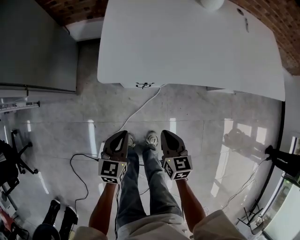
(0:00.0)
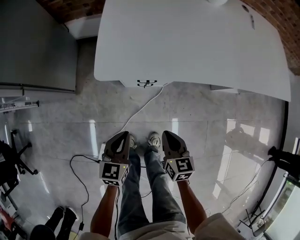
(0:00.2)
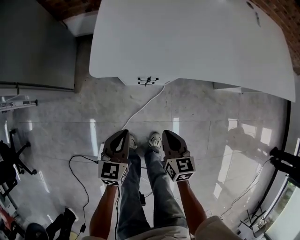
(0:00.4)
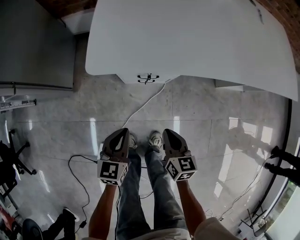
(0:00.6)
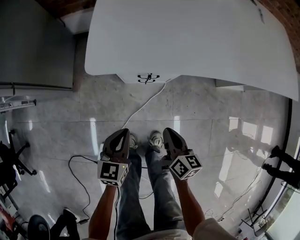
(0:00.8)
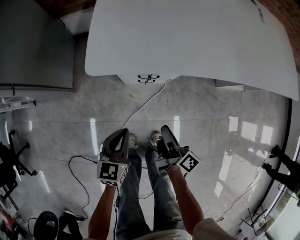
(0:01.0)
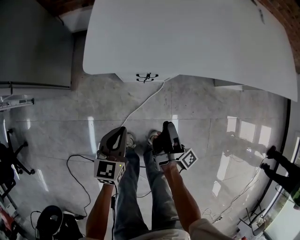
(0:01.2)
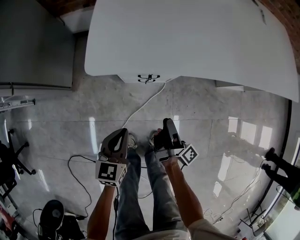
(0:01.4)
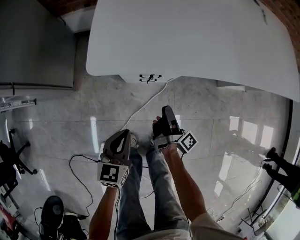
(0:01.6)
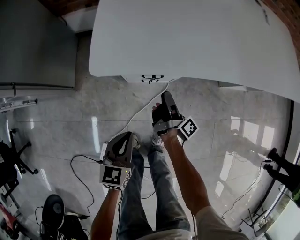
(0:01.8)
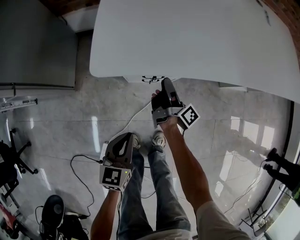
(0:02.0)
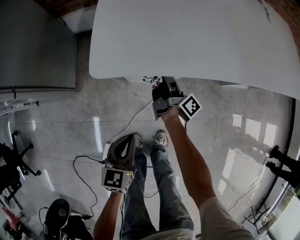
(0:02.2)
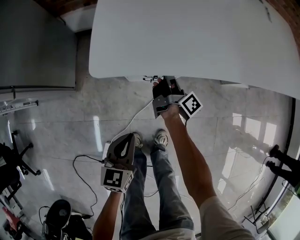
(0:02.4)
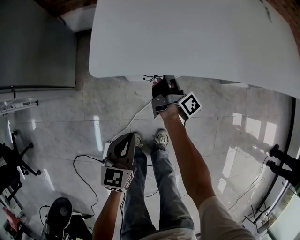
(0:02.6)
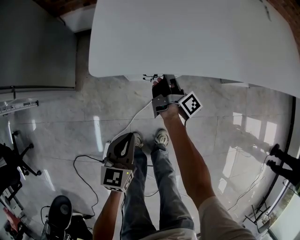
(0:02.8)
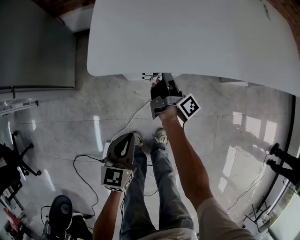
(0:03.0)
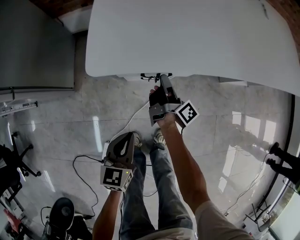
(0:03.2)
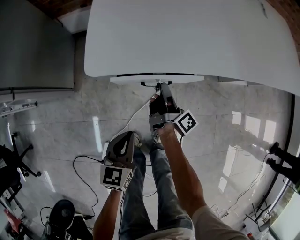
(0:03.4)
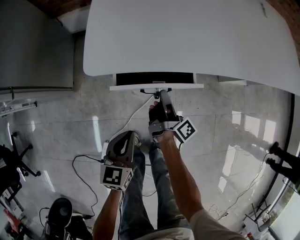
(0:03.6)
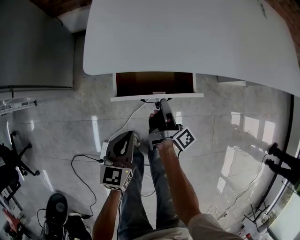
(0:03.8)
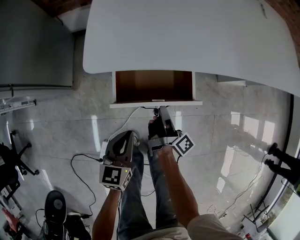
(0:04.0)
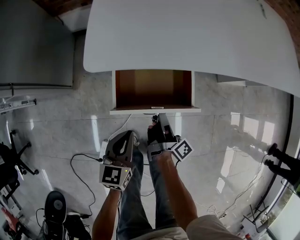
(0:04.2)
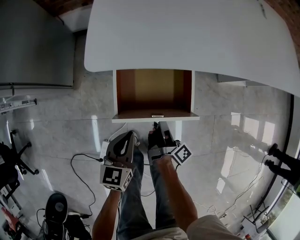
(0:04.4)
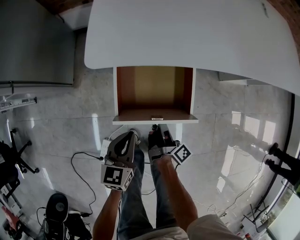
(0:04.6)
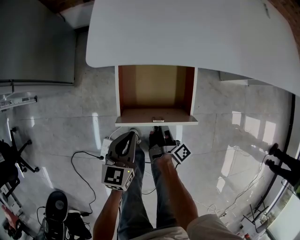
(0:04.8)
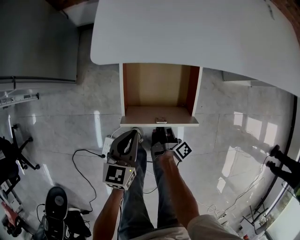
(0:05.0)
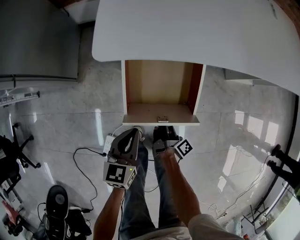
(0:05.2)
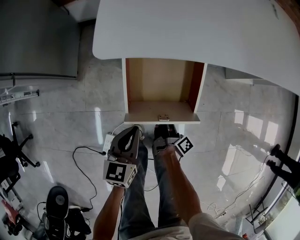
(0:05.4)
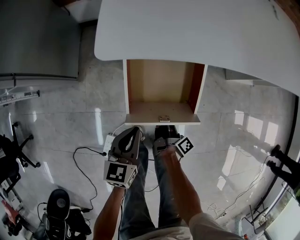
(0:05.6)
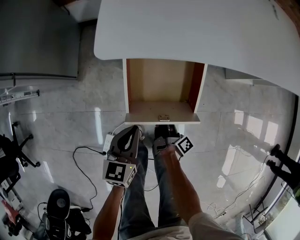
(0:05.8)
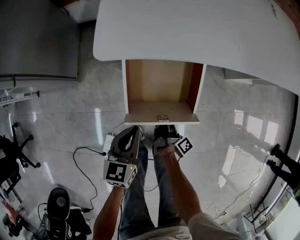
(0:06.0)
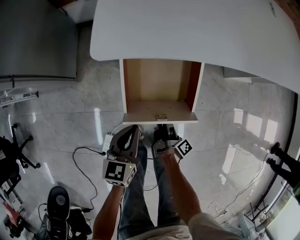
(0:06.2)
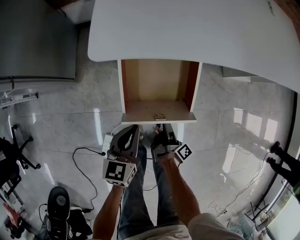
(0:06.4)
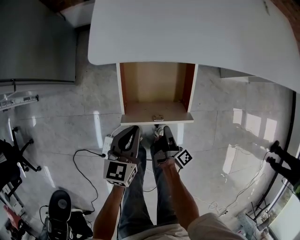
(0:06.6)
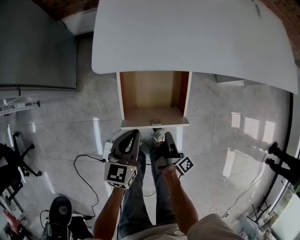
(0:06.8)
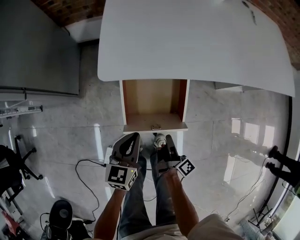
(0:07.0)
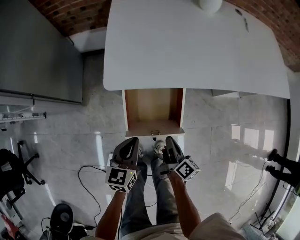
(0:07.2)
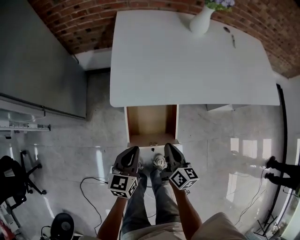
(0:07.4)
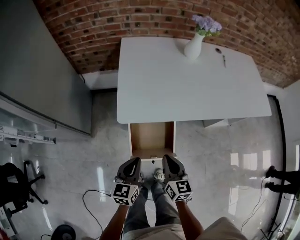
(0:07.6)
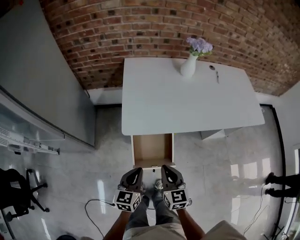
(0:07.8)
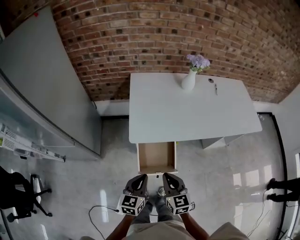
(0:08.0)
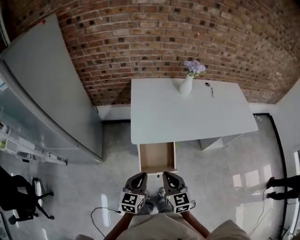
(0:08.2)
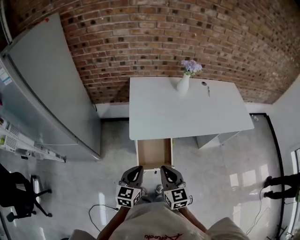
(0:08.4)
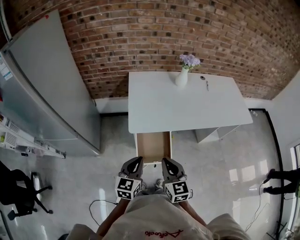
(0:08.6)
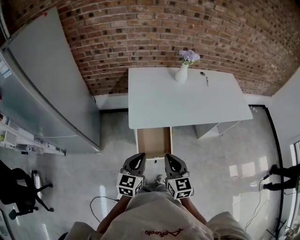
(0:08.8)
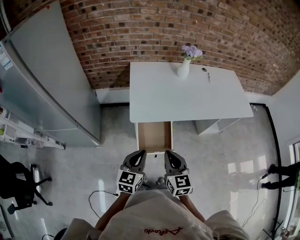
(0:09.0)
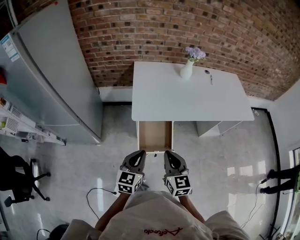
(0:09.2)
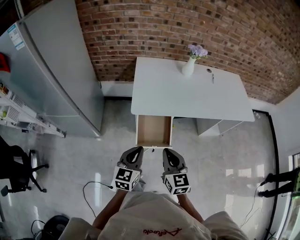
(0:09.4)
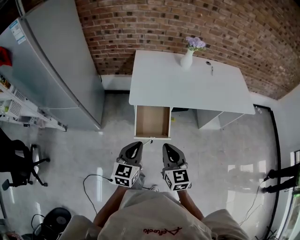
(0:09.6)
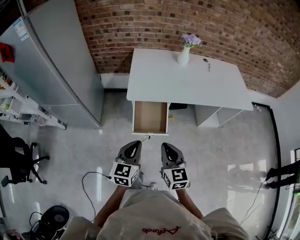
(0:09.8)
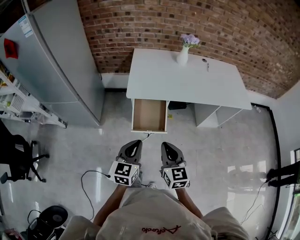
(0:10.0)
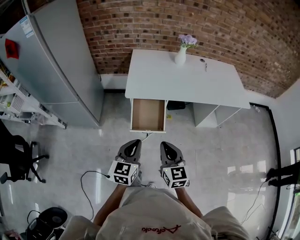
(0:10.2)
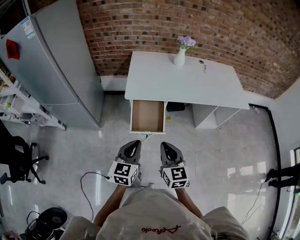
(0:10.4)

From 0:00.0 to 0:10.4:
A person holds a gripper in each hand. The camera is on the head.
From 0:00.0 to 0:01.4: The two grippers go roughly 10 cm downward. The right gripper twists about 80 degrees clockwise, seen from behind, and opens up.
From 0:01.4 to 0:03.0: The right gripper is displaced forward by about 15 cm, and closes its fingers.
From 0:03.0 to 0:04.4: The right gripper moves backward, approximately 20 cm.
From 0:04.4 to 0:06.0: The right gripper heads downward, covering approximately 10 cm.
From 0:06.0 to 0:07.4: The right gripper shifts about 25 cm upward, and twists about 60 degrees counterclockwise, seen from behind. The left gripper shifts some 15 cm upward.
From 0:07.4 to 0:09.0: Both grippers travel together upward, some 25 cm. The right gripper swivels approximately 40 degrees.
From 0:09.0 to 0:10.4: The grippers both shift backward and to the right by approximately 15 cm.

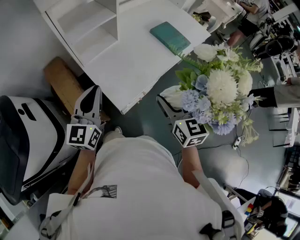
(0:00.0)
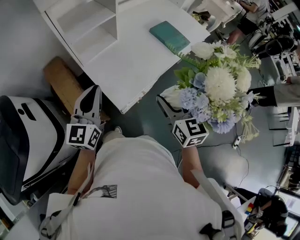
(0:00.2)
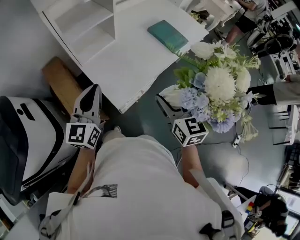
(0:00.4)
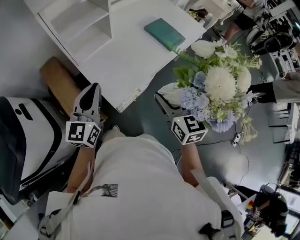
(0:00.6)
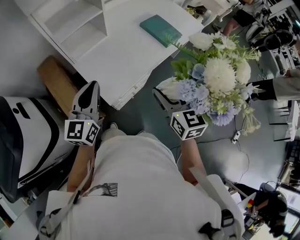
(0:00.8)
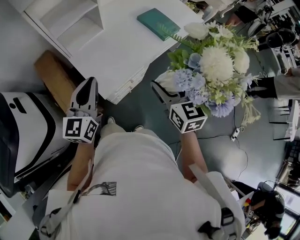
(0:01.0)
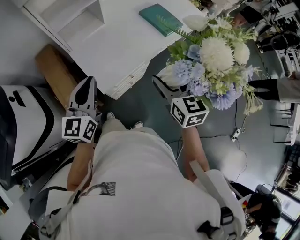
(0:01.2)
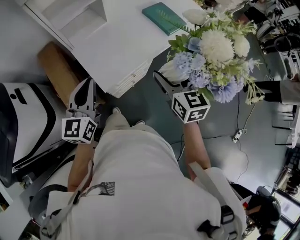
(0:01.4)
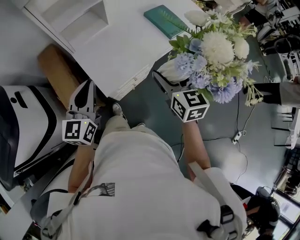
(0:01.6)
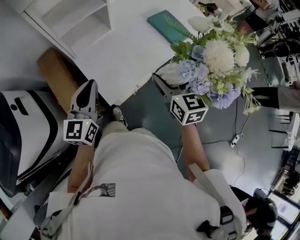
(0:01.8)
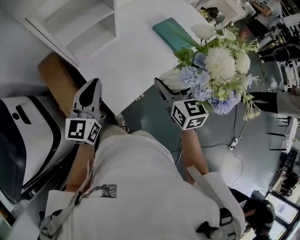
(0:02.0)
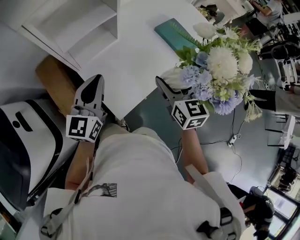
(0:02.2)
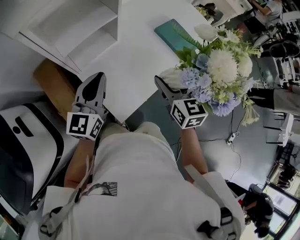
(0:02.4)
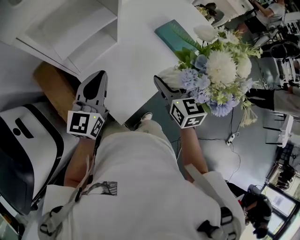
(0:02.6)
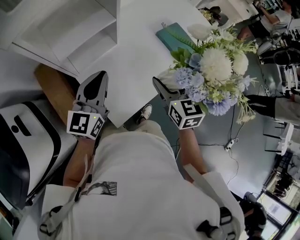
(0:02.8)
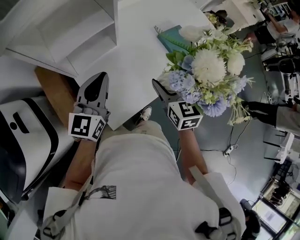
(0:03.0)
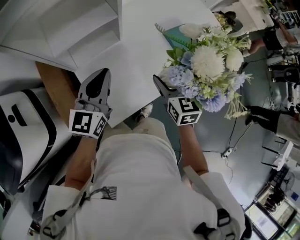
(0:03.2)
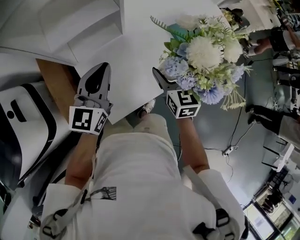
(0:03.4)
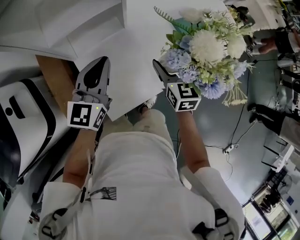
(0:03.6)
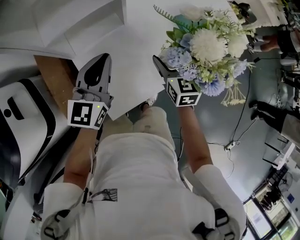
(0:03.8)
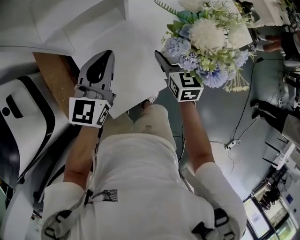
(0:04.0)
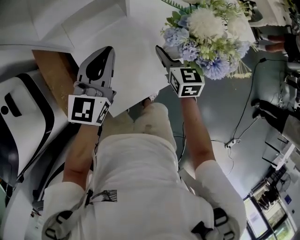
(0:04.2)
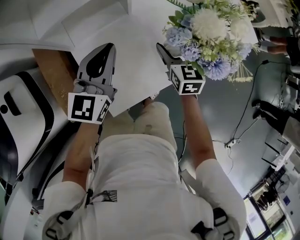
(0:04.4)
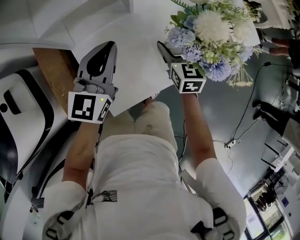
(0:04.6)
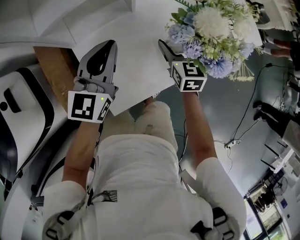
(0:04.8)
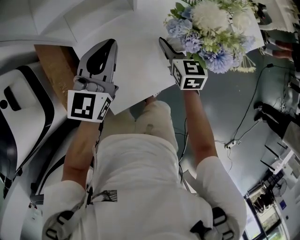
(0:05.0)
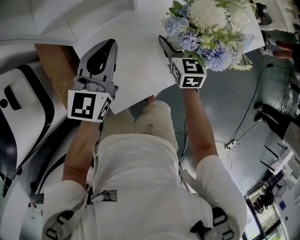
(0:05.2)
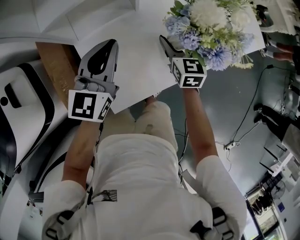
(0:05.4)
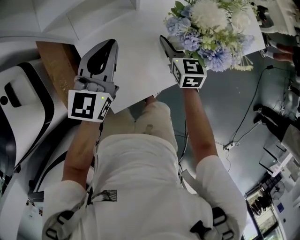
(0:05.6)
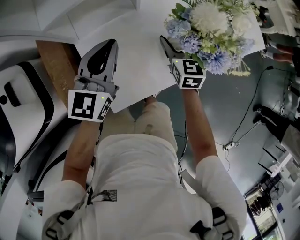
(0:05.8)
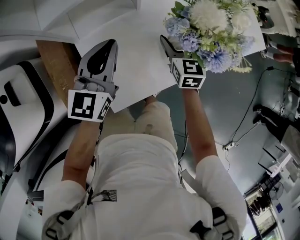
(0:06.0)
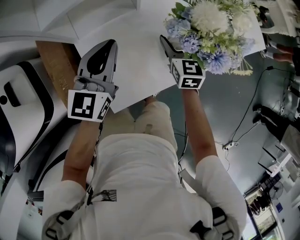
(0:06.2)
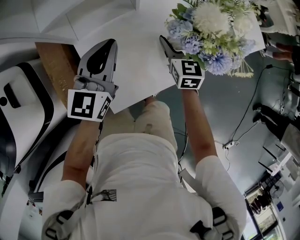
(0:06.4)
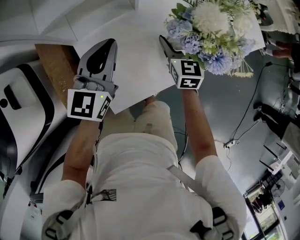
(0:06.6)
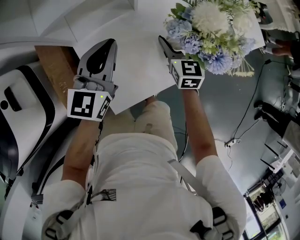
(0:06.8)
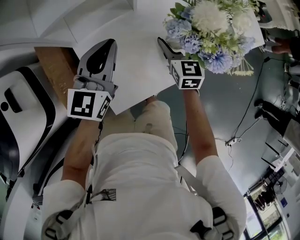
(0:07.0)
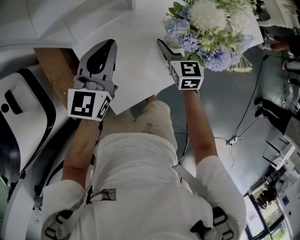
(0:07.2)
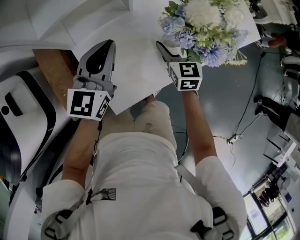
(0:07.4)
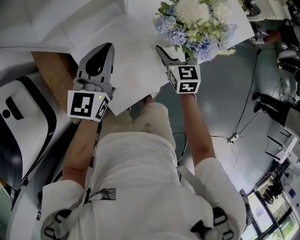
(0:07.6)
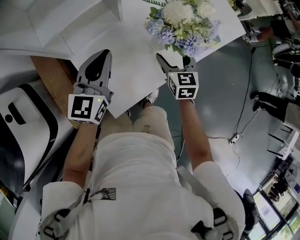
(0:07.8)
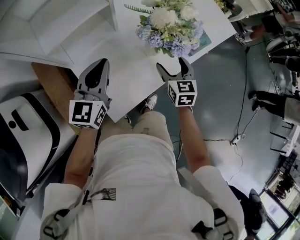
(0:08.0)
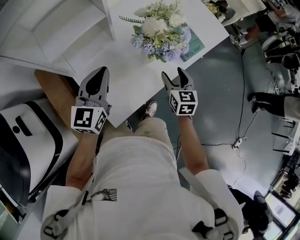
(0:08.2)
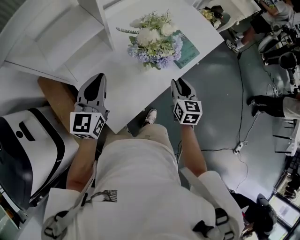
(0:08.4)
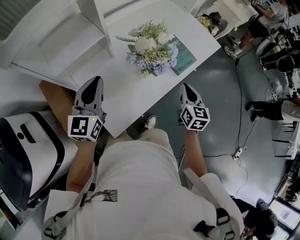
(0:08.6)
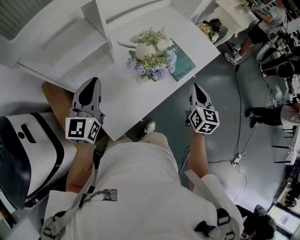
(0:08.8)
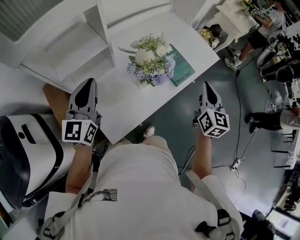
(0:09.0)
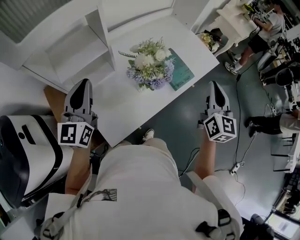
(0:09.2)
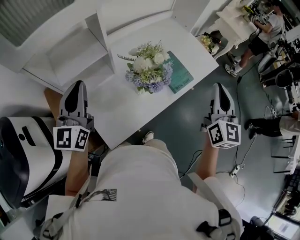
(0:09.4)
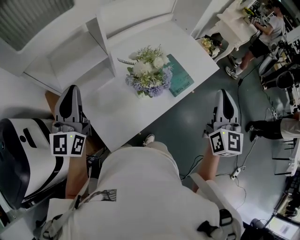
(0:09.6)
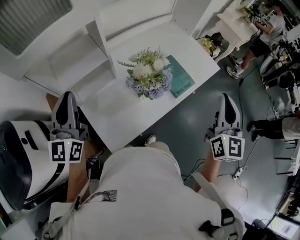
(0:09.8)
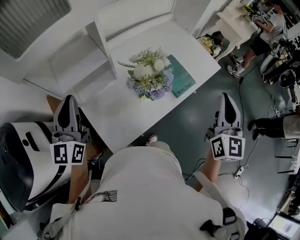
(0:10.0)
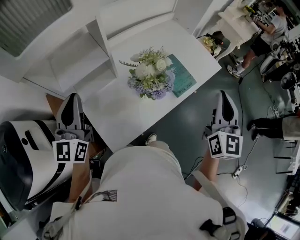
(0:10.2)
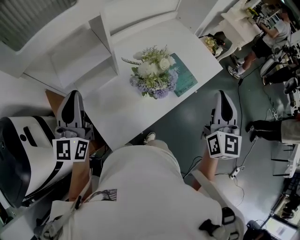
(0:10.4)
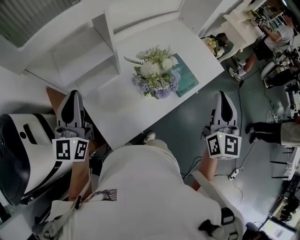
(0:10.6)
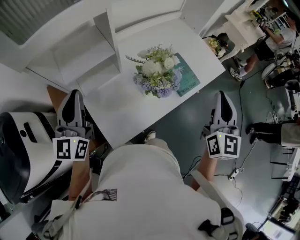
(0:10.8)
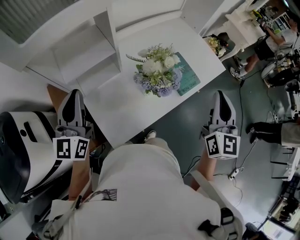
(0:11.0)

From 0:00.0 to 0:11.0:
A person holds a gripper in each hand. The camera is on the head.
From 0:00.0 to 0:01.6: The grippers both shift to the right by roughly 5 cm.
From 0:01.6 to 0:03.2: The two grippers go roughly 20 cm forward.
From 0:03.2 to 0:04.8: The left gripper is displaced downward by about 5 cm; the right gripper travels downward and forward by approximately 15 cm.
From 0:04.8 to 0:06.2: The grippers stay close to where they were, moving slightly.
From 0:06.2 to 0:07.8: The right gripper heads backward, covering approximately 5 cm.
From 0:07.8 to 0:09.4: The right gripper shifts roughly 40 cm upward and to the right, tips its fingers upward by some 30 degrees, and closes. Meanwhile the left gripper shifts about 20 cm upward.
From 0:09.4 to 0:11.0: There are only small adjustments of the grippers.

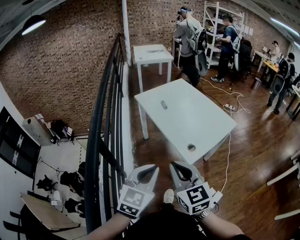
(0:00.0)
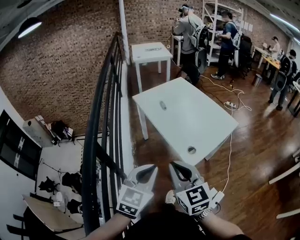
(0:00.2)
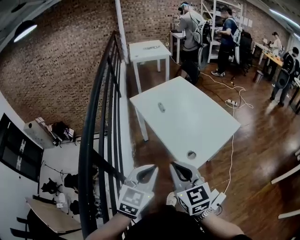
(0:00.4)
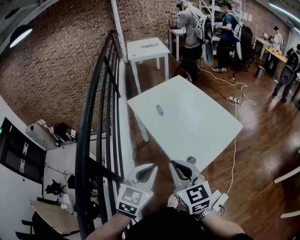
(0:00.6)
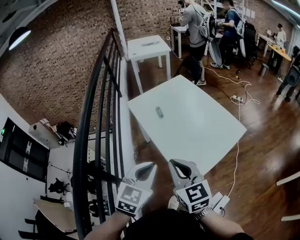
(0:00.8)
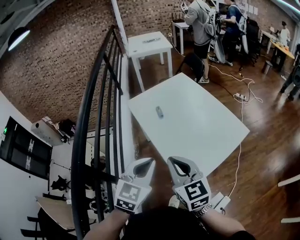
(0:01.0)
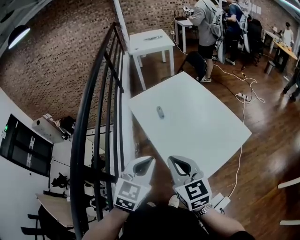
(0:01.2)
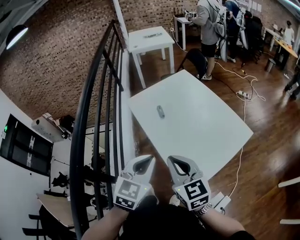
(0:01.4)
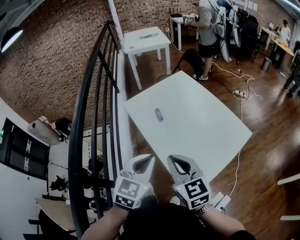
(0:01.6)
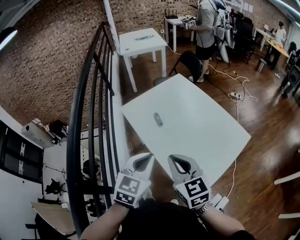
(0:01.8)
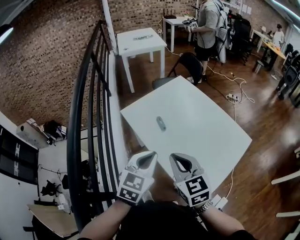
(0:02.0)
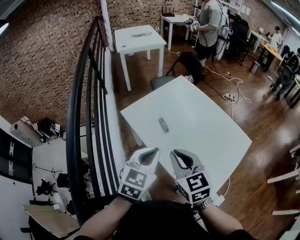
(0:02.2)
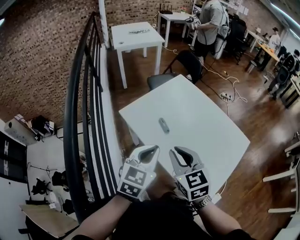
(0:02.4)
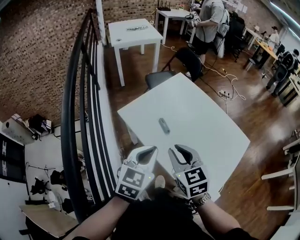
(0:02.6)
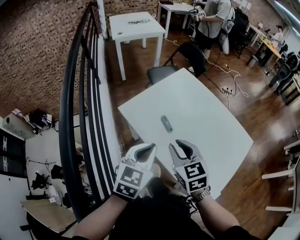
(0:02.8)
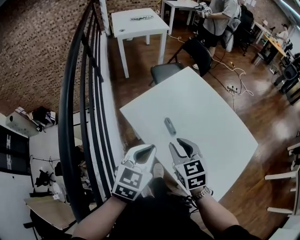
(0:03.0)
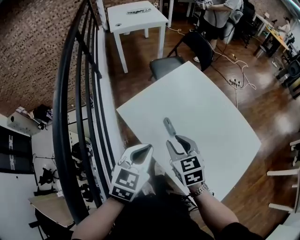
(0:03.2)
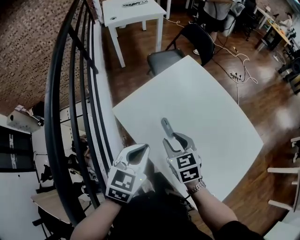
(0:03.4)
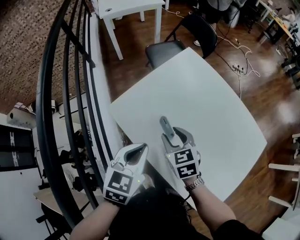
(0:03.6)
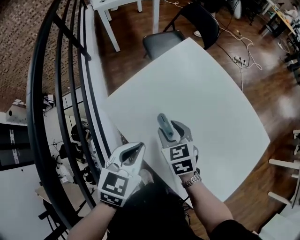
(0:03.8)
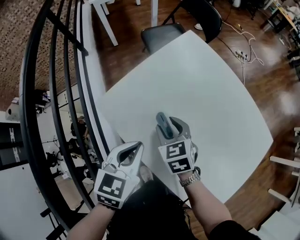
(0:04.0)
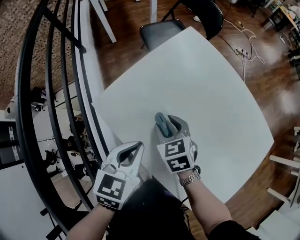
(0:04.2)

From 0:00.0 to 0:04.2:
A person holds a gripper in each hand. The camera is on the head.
From 0:00.0 to 0:01.4: The two grippers go about 25 cm forward.
From 0:01.4 to 0:02.8: The grippers both shift forward and to the left by some 20 cm. The right gripper changes its angle by about 20 degrees.
From 0:02.8 to 0:04.2: Both grippers move downward and forward, approximately 20 cm. The right gripper opens up.
